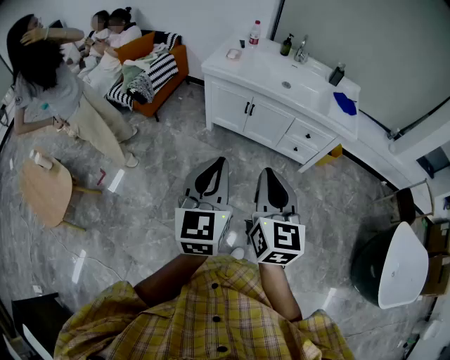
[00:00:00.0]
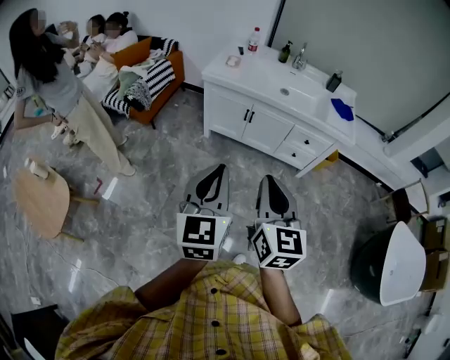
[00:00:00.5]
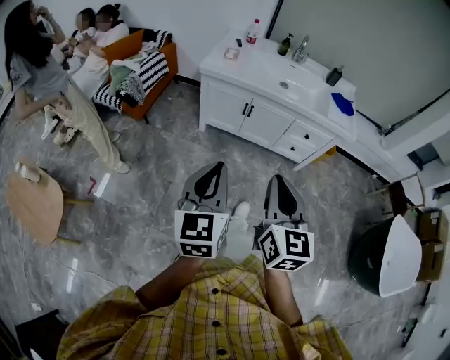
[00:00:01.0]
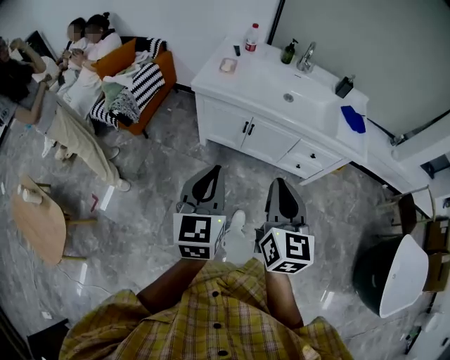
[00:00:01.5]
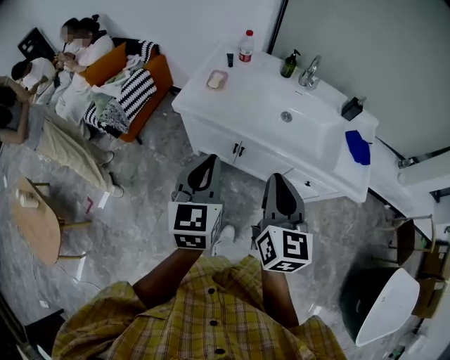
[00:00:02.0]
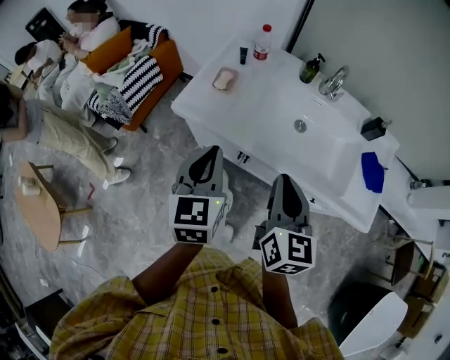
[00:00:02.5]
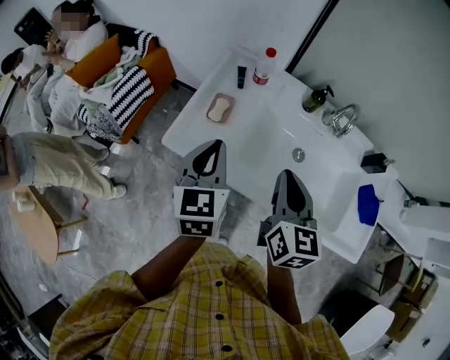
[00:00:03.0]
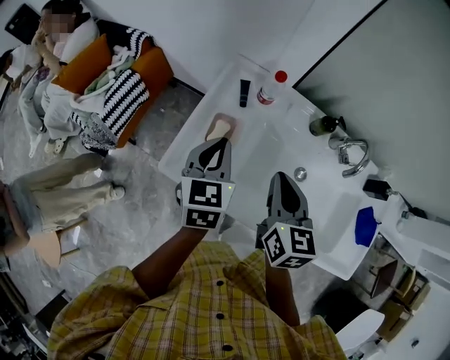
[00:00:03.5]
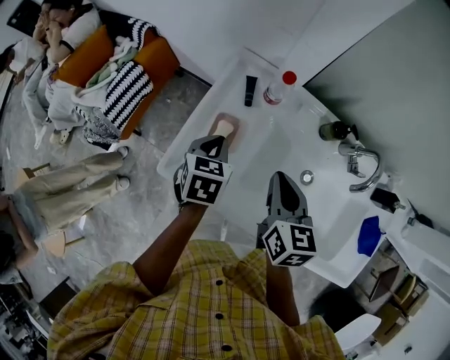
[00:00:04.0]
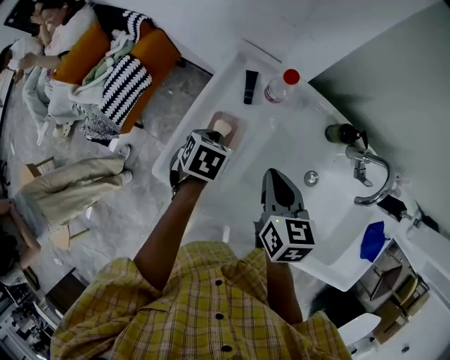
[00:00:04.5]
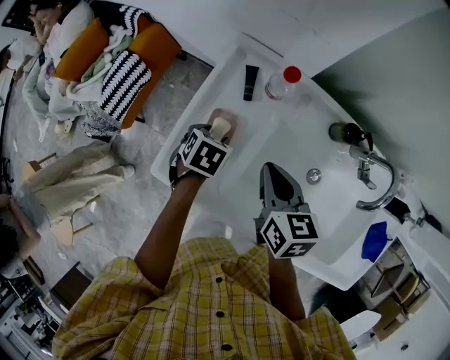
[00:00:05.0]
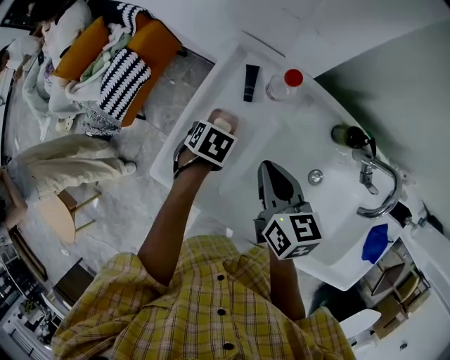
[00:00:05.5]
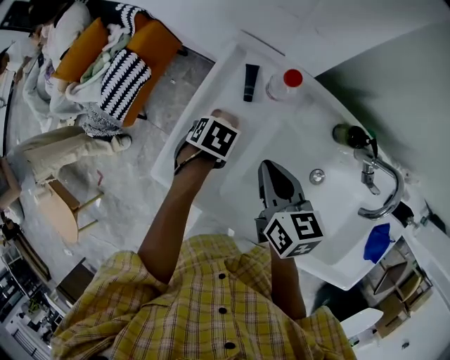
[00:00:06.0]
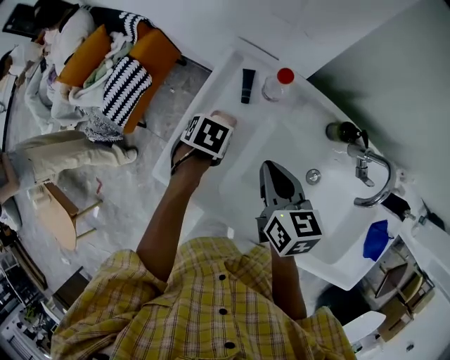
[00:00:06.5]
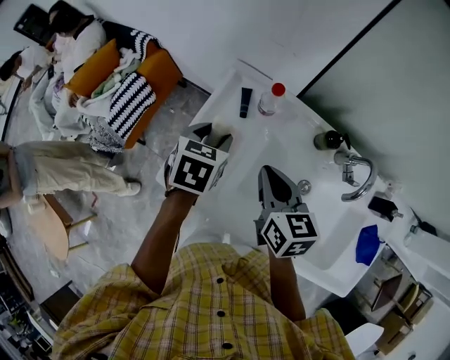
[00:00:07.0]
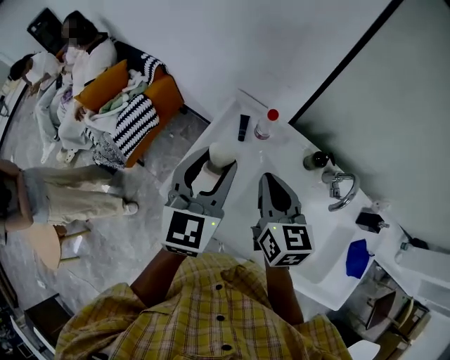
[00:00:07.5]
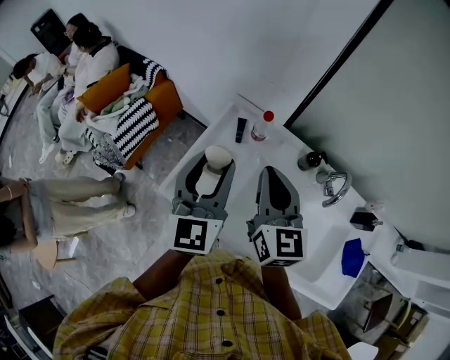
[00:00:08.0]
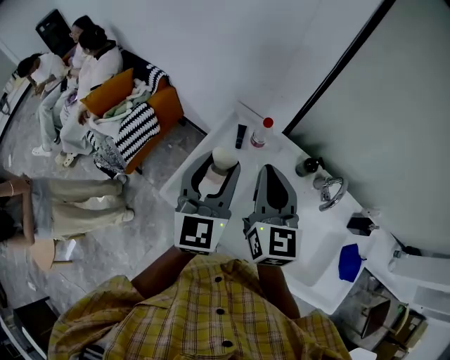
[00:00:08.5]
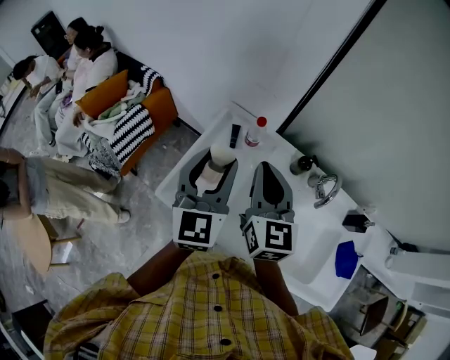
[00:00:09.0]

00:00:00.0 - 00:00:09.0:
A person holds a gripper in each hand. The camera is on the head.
00:00:00.0 - 00:00:02.0: Both grippers are carried forward, approximately 50 cm.
00:00:02.0 - 00:00:04.5: The two grippers travel together, forward, roughly 50 cm. The right gripper turns by approximately 30 degrees, while the left gripper goes some 30 cm downward, and points its fingers approximately 50 degrees further downward.
00:00:04.5 - 00:00:07.0: The left gripper heads upward, covering roughly 15 cm, and opens its fingers. Meanwhile the right gripper shifts approximately 5 cm upward.
00:00:07.0 - 00:00:09.0: The two grippers go approximately 20 cm upward. The left gripper angles its fingers upward, by some 50 degrees; the right gripper rotates about 30 degrees.

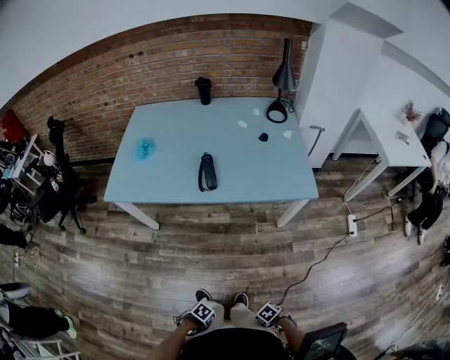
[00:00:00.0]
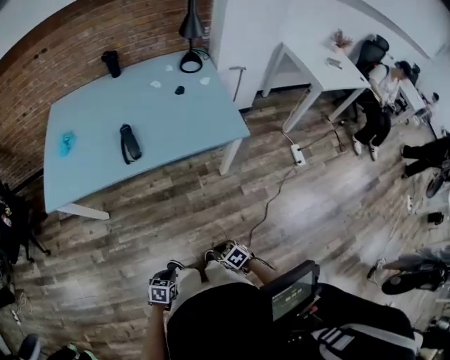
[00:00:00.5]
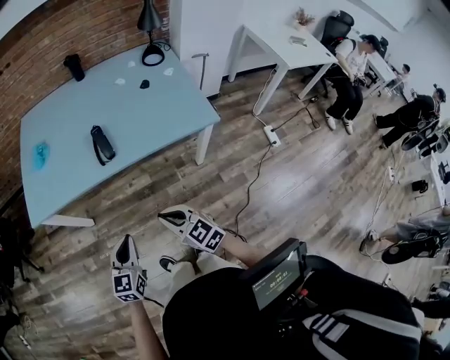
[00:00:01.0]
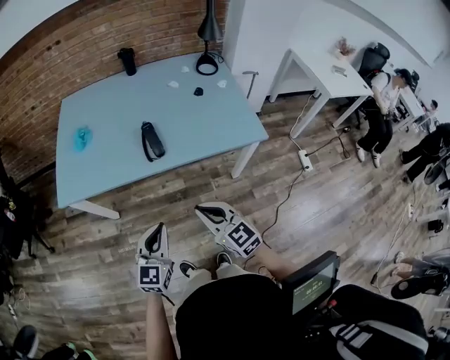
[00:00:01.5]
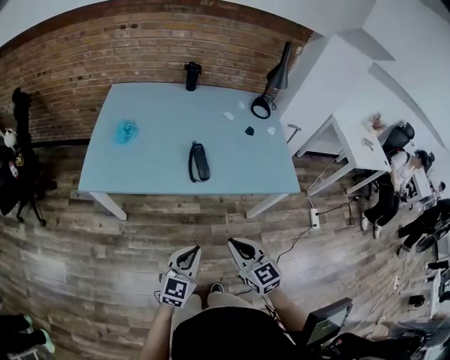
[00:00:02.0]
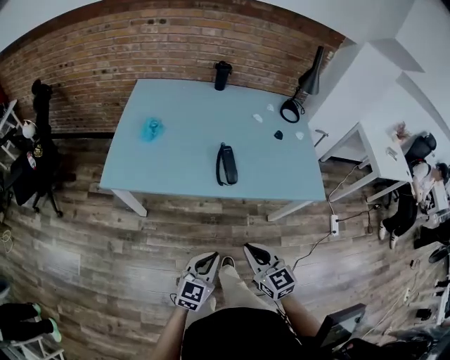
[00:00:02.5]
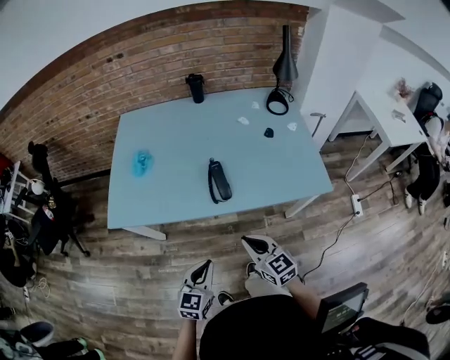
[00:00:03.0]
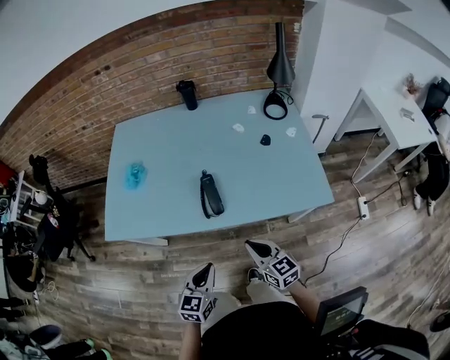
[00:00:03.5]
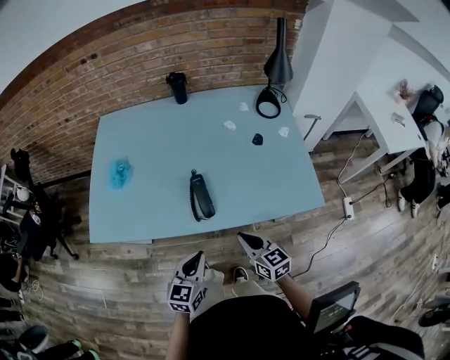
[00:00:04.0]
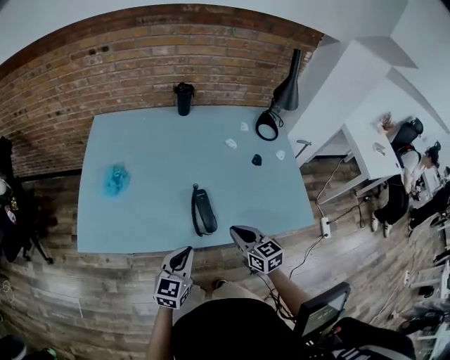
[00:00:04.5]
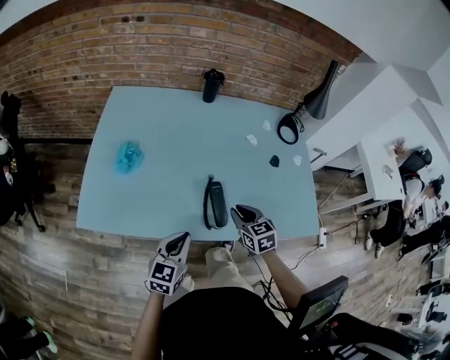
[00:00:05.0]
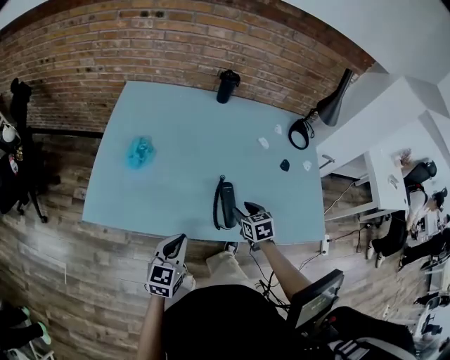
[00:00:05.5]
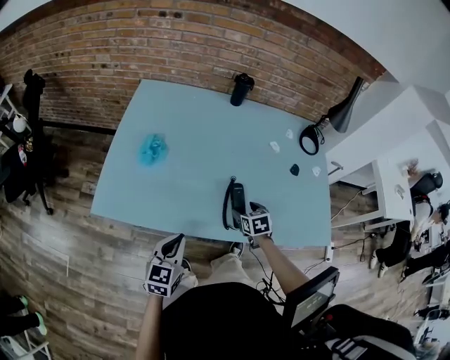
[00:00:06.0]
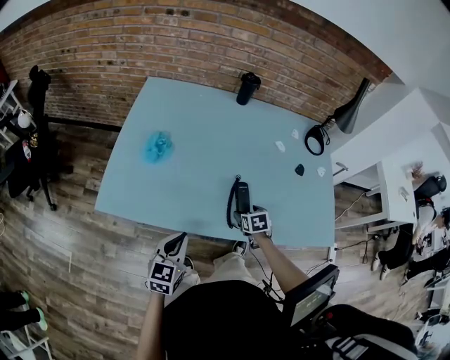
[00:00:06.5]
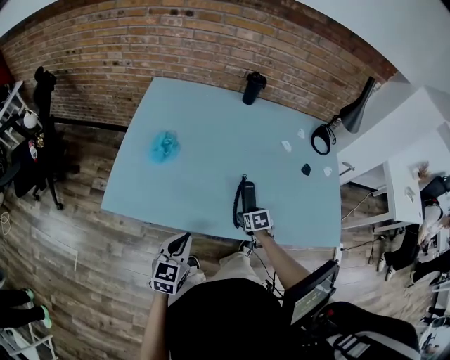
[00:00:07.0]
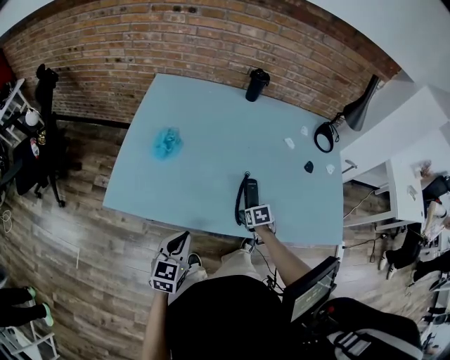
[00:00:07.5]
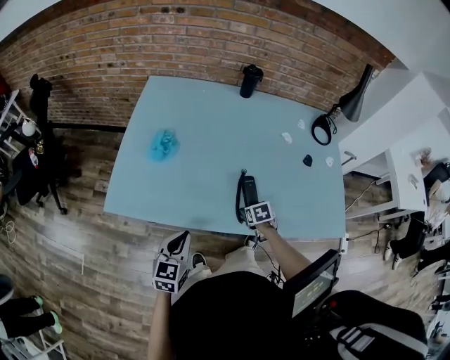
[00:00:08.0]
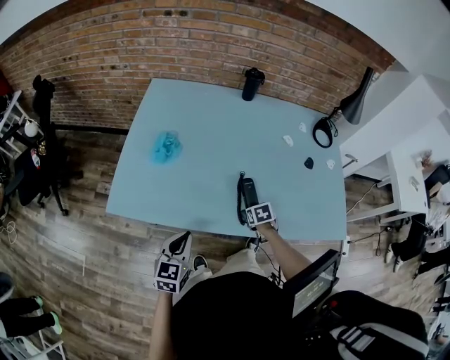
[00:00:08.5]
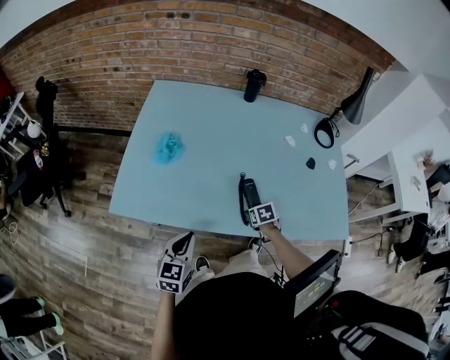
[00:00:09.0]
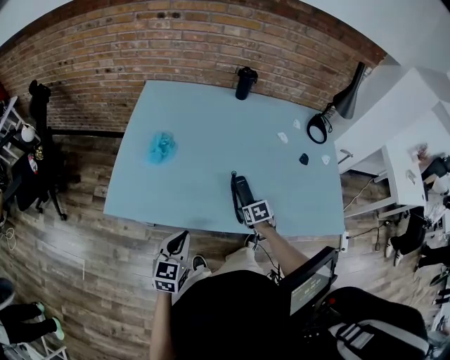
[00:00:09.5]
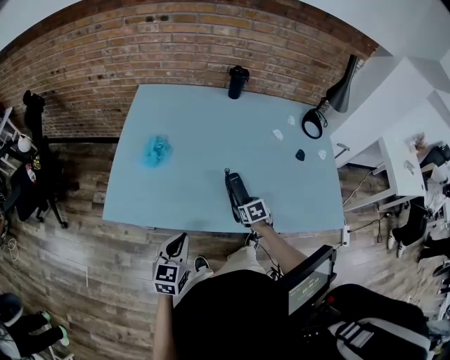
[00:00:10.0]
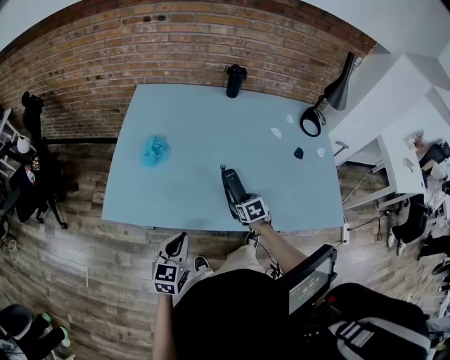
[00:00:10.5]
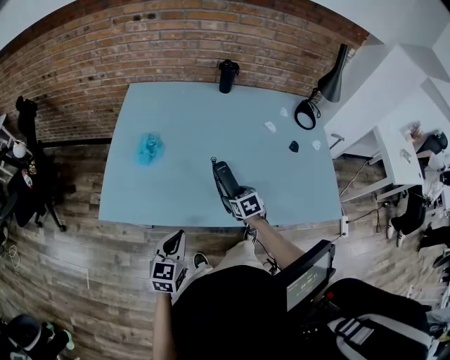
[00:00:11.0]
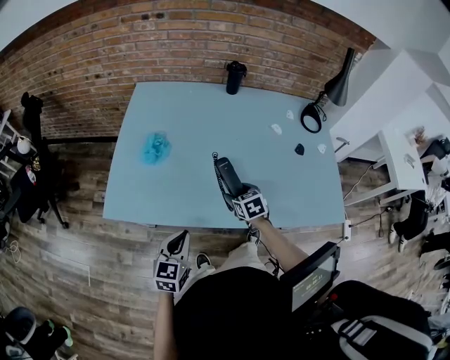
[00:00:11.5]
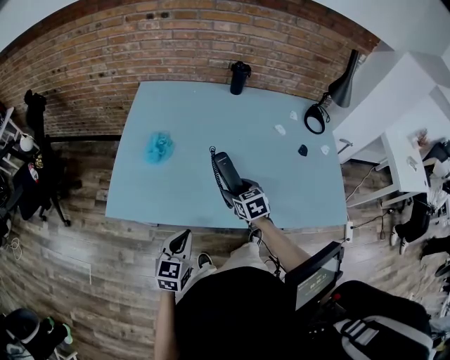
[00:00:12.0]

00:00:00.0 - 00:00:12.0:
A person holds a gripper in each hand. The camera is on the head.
00:00:00.0 - 00:00:02.0: The left gripper moves about 40 cm, and points its fingers some 50 degrees further upward. The right gripper shifts by approximately 50 cm, and tips its fingers upward by about 40 degrees.
00:00:02.0 - 00:00:04.0: Both grippers travel together forward, approximately 20 cm. The right gripper rotates approximately 20 degrees.
00:00:04.0 - 00:00:06.0: The left gripper is displaced to the left by approximately 20 cm; the right gripper goes roughly 25 cm forward, downward and to the left, tips its fingers downward by some 30 degrees, and opens up.
00:00:06.0 - 00:00:08.0: The right gripper shifts roughly 10 cm downward.
00:00:08.0 - 00:00:10.0: The grippers stay close to where they were, moving slightly.
00:00:10.0 - 00:00:12.0: The right gripper shifts approximately 15 cm upward and to the left.

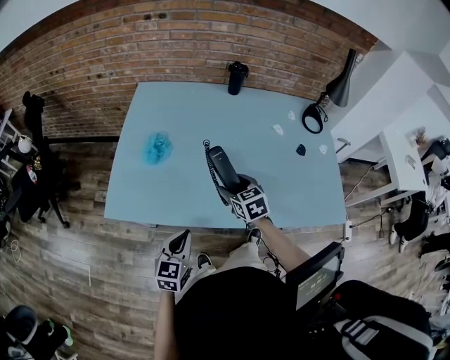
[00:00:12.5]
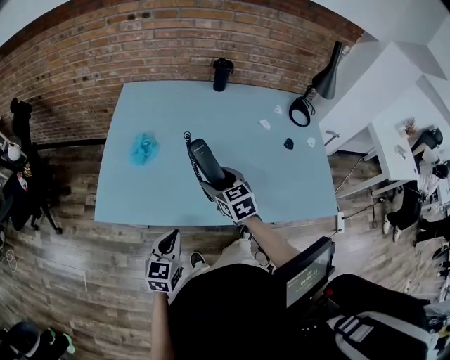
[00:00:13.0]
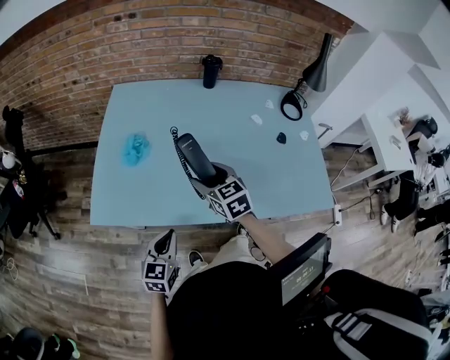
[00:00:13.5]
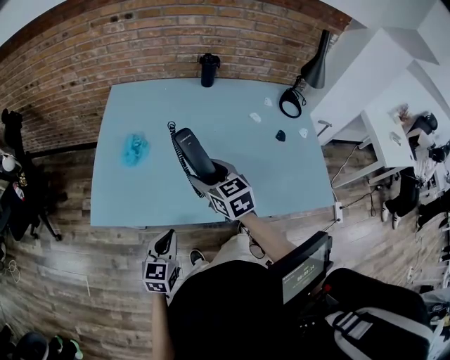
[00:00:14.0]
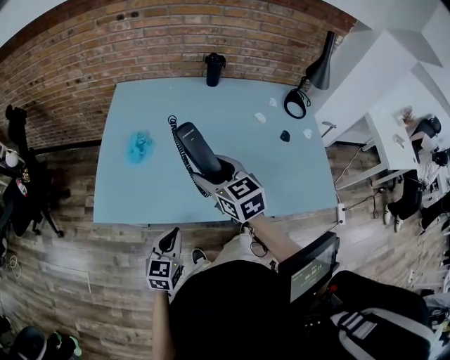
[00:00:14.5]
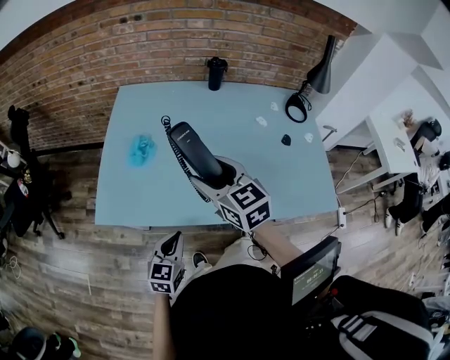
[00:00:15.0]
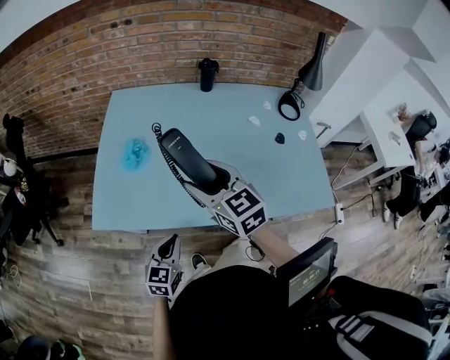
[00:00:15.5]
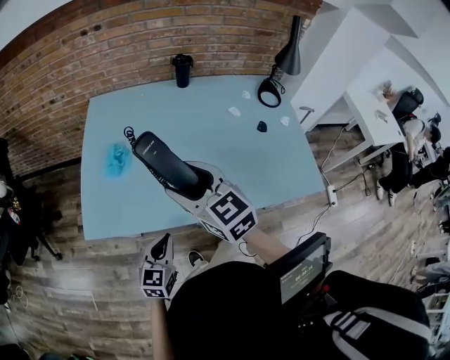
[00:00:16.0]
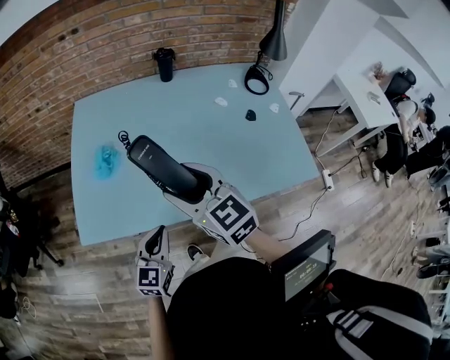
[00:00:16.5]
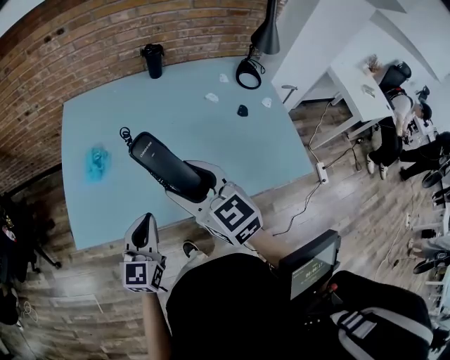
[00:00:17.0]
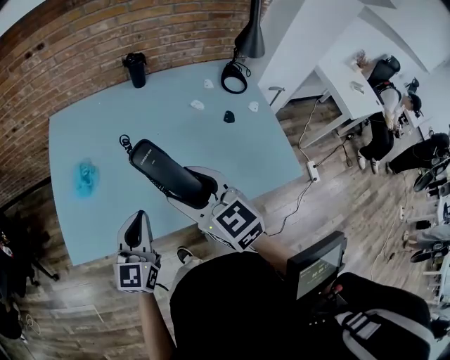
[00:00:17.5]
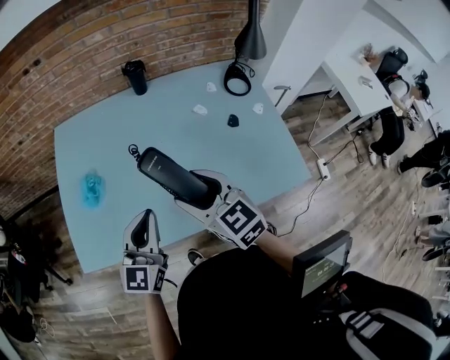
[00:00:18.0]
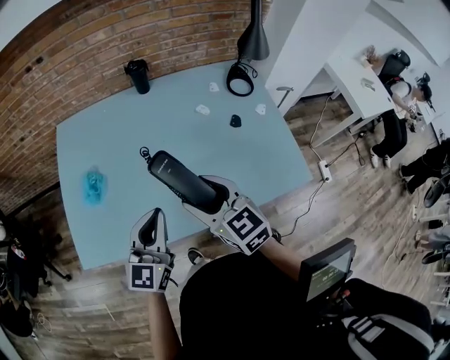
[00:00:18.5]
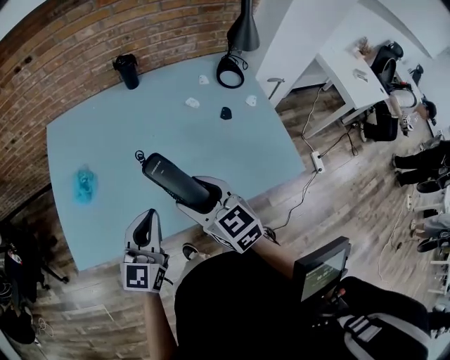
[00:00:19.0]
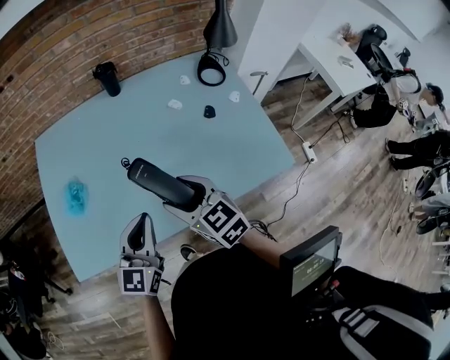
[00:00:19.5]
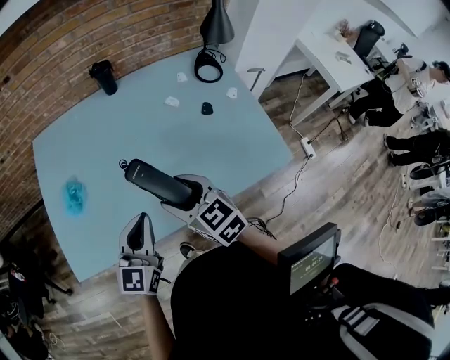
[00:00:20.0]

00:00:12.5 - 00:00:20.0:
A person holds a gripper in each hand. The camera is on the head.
00:00:12.5 - 00:00:14.5: The right gripper moves upward, some 15 cm.
00:00:14.5 - 00:00:16.5: The left gripper ends up some 5 cm from where it was, while the right gripper heads upward and backward, covering about 10 cm.
00:00:16.5 - 00:00:18.0: The left gripper travels upward, forward and to the right by approximately 20 cm. Meanwhile the right gripper heads to the right, covering some 10 cm.
00:00:18.0 - 00:00:20.0: The right gripper travels downward by roughly 5 cm. The left gripper ends up some 5 cm from where it was.
